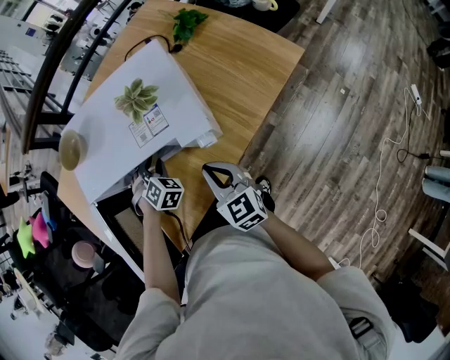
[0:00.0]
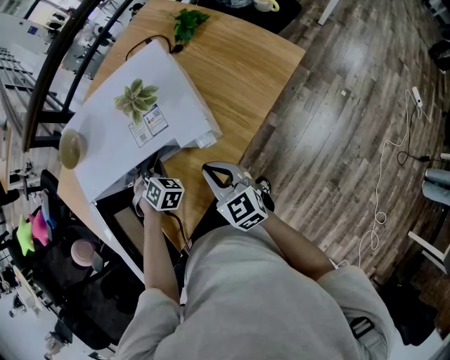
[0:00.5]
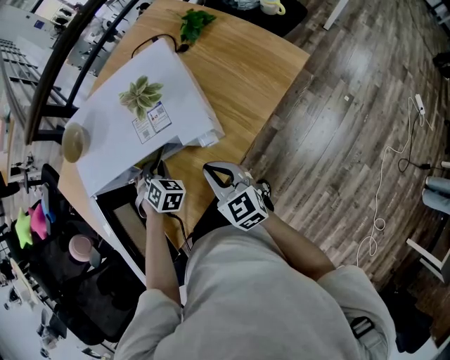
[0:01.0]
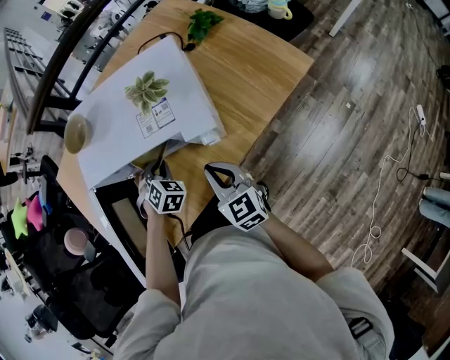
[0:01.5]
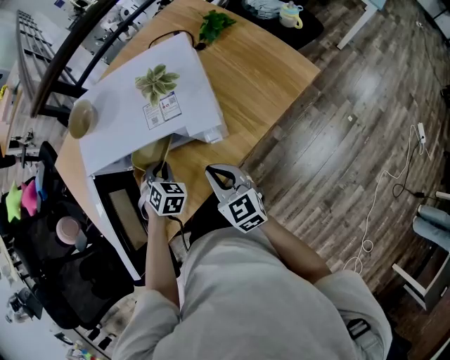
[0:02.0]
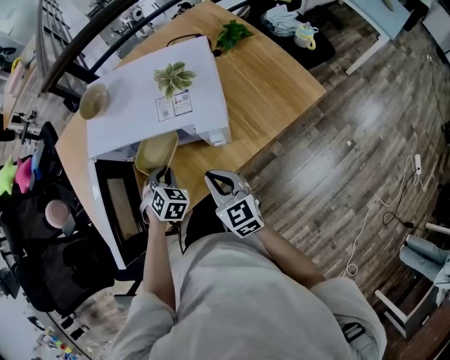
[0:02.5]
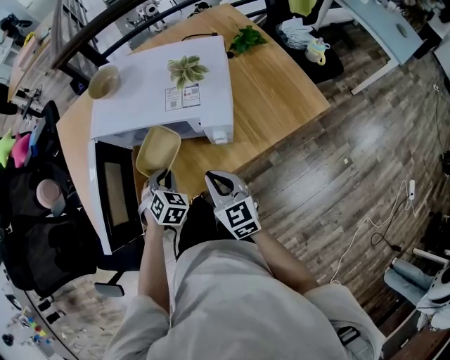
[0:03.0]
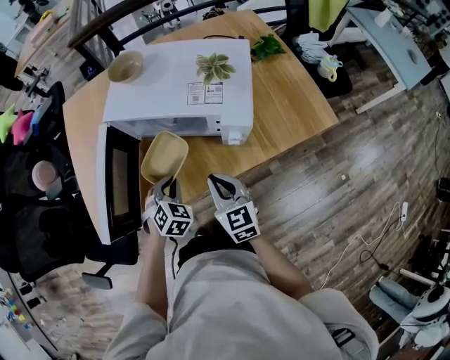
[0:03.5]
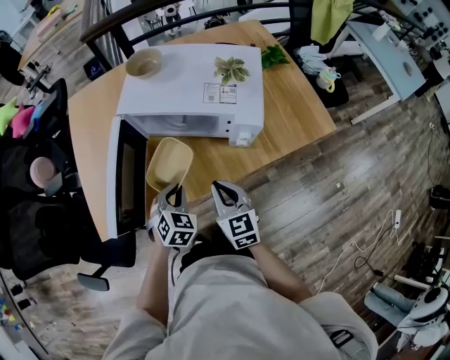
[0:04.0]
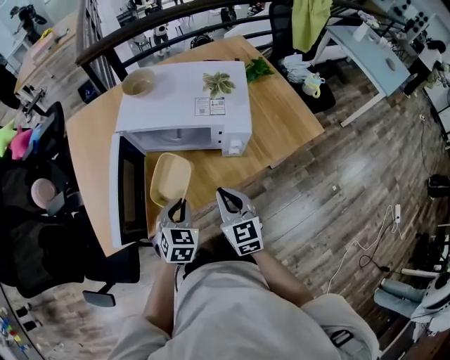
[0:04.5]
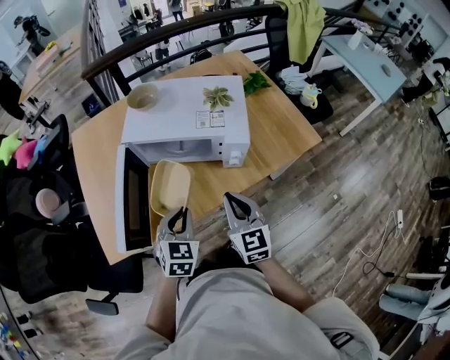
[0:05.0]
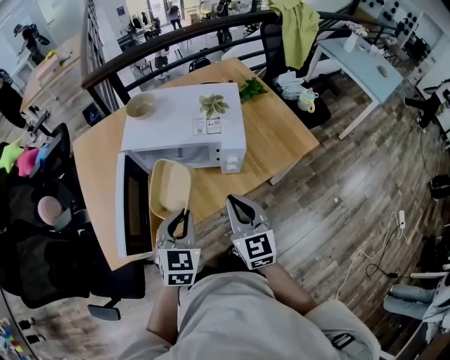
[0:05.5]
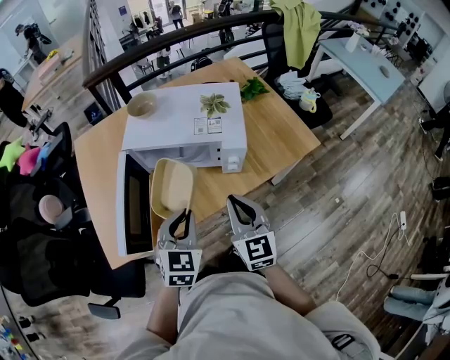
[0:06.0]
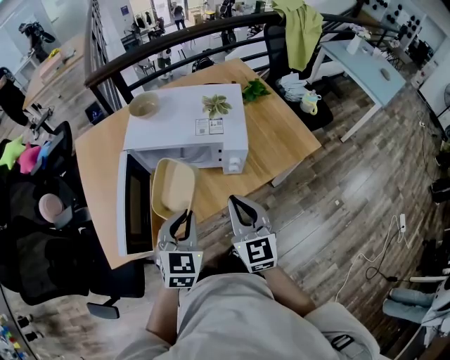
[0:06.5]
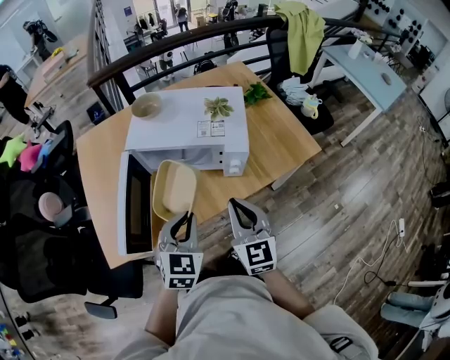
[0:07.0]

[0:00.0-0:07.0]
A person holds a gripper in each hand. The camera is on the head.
0:00.0 to 0:02.0: The left gripper travels backward by approximately 5 cm, and closes.
0:02.0 to 0:03.5: The left gripper is displaced backward by some 10 cm. Meanwhile the right gripper changes place by about 5 cm.
0:03.5 to 0:05.0: The left gripper is displaced upward and backward by roughly 15 cm, and changes its angle by approximately 20 degrees; the right gripper goes roughly 10 cm upward.
0:05.0 to 0:07.0: The grippers both shift upward by about 5 cm.

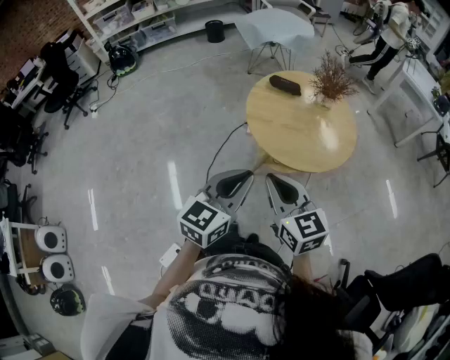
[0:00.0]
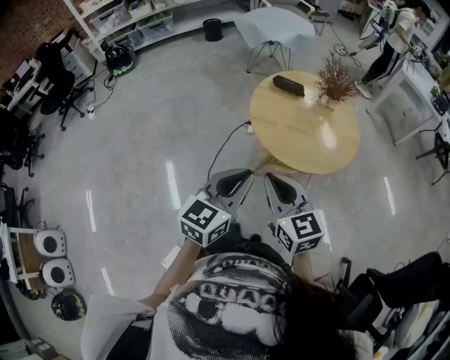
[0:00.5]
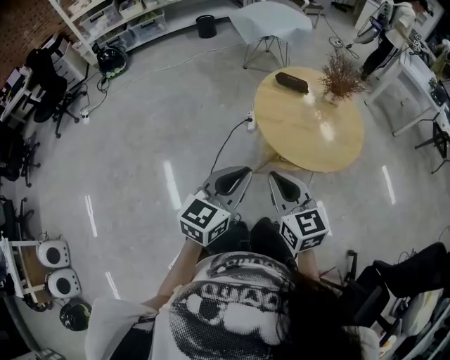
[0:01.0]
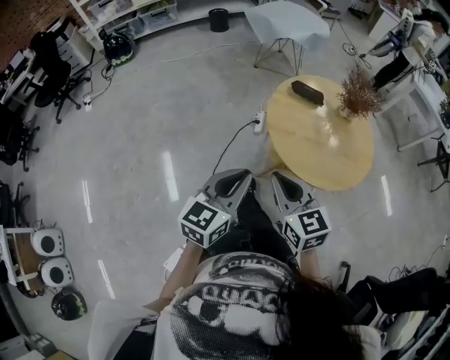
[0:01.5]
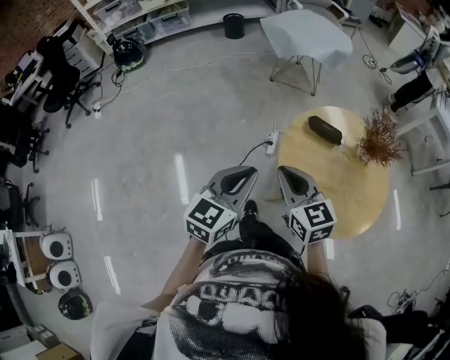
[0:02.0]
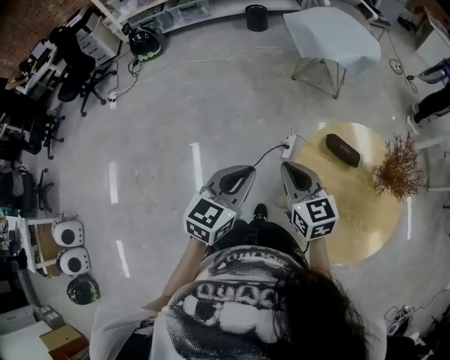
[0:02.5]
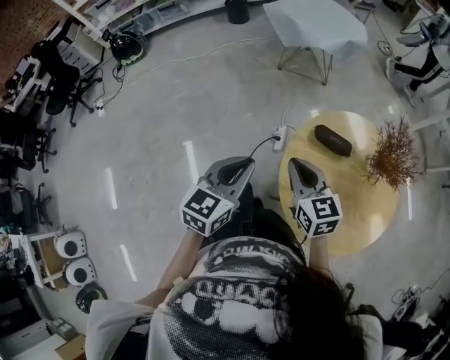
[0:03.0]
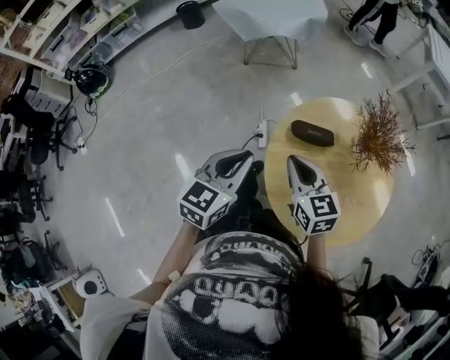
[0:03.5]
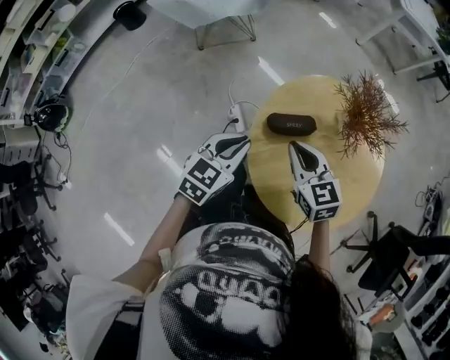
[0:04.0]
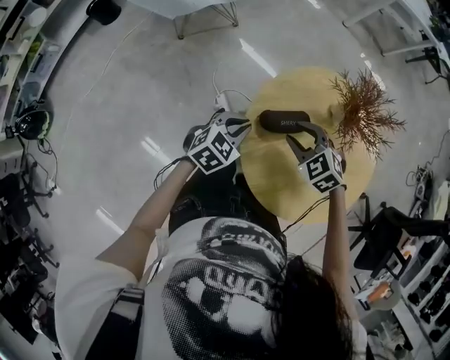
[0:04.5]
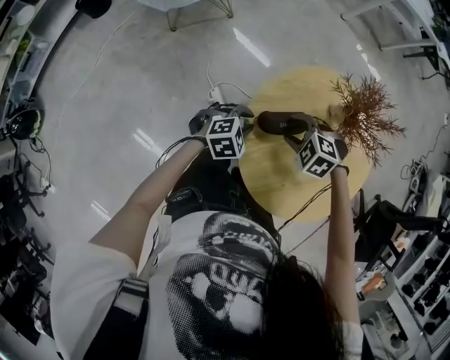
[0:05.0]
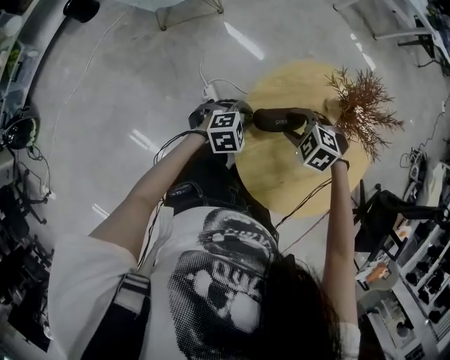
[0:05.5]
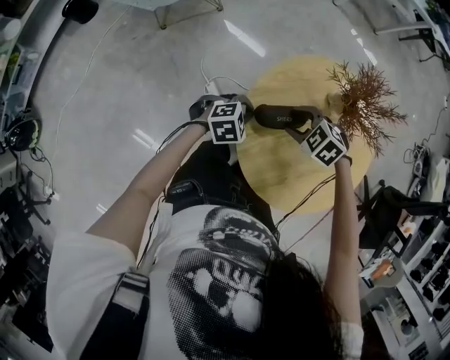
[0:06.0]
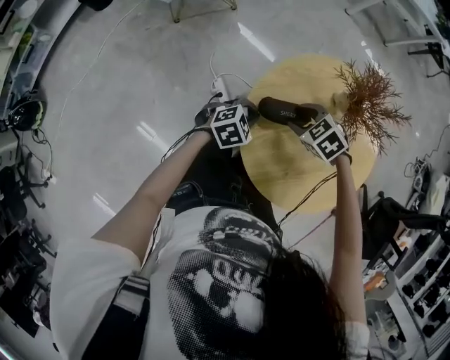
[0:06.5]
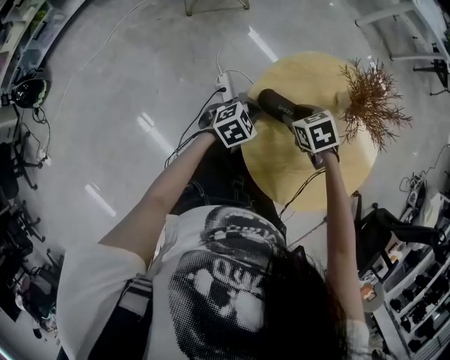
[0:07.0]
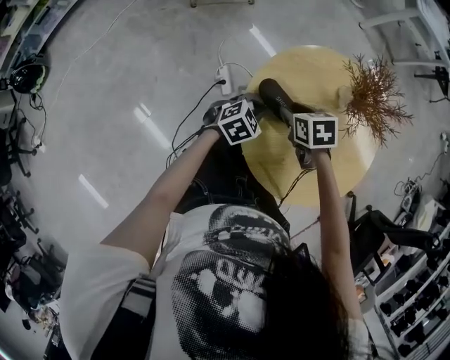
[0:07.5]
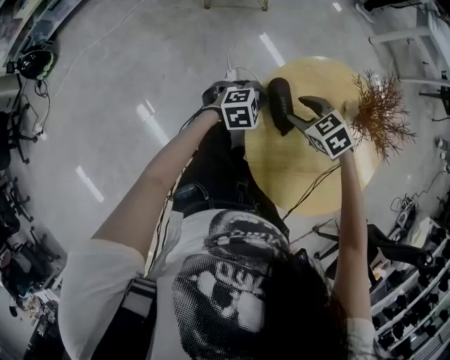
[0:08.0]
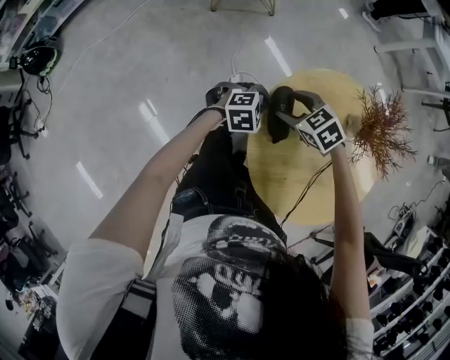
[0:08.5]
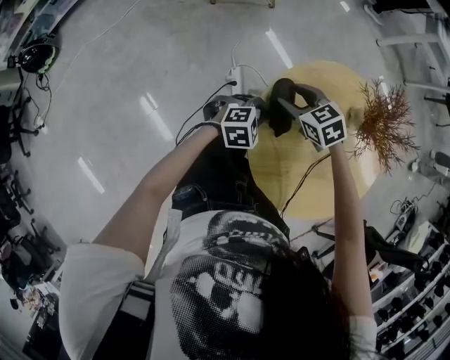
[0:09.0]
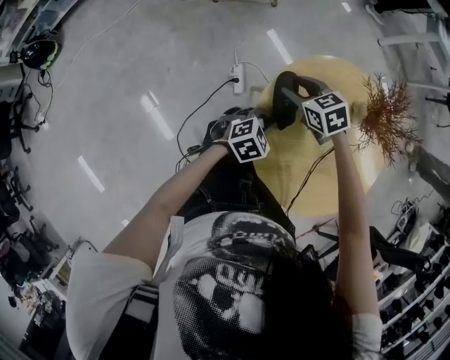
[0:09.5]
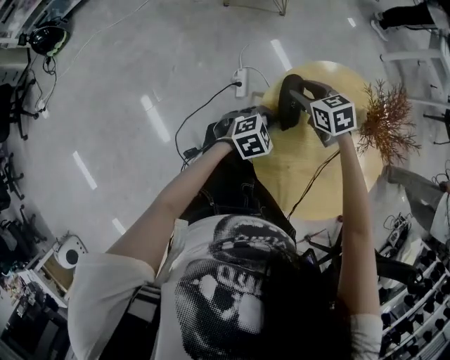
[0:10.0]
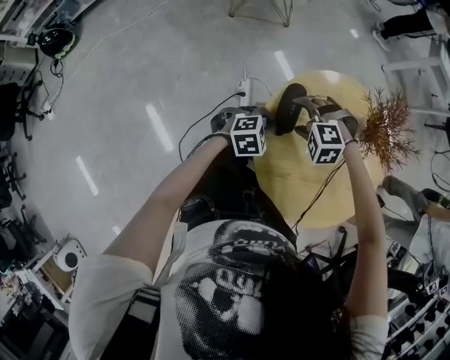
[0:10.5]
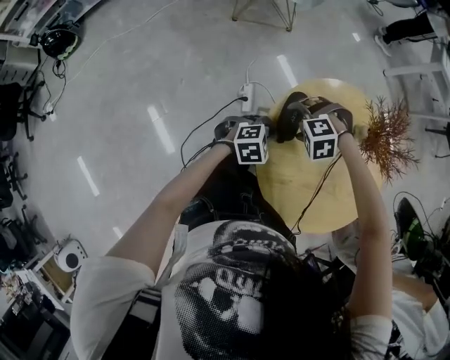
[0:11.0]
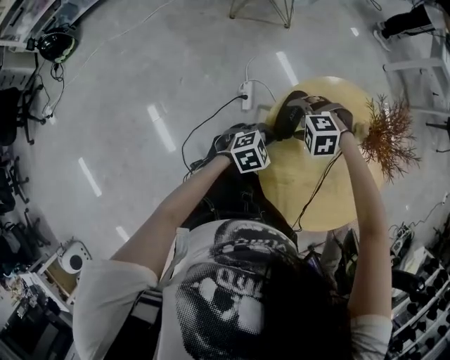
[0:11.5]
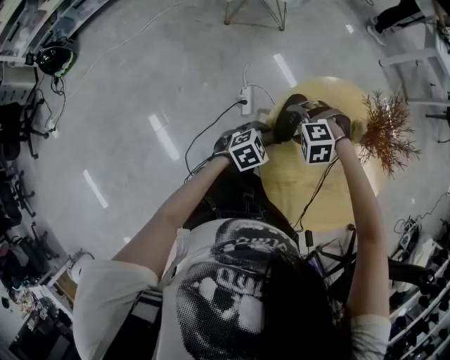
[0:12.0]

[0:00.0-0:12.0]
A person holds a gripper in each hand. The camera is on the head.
0:00.0 to 0:02.0: The grippers both shift forward and to the left by approximately 30 cm.
0:02.0 to 0:04.0: The right gripper changes place by roughly 25 cm, and turns by some 30 degrees. Meanwhile the left gripper changes place by some 30 cm, and swivels approximately 40 degrees.
0:04.0 to 0:06.0: The grippers both shift downward by roughly 15 cm. The left gripper changes its angle by approximately 50 degrees; the right gripper tilts its fingers roughly 40 degrees downward, and opens its fingers.
0:06.0 to 0:08.0: The right gripper moves approximately 5 cm; the left gripper turns by roughly 20 degrees.
0:08.0 to 0:10.0: The left gripper changes place by approximately 10 cm, and turns by about 20 degrees. Meanwhile the right gripper ends up roughly 5 cm from where it was.
0:10.0 to 0:12.0: The left gripper opens. The right gripper moves about 10 cm, twists about 70 degrees counterclockwise, seen from behind, and opens its fingers.

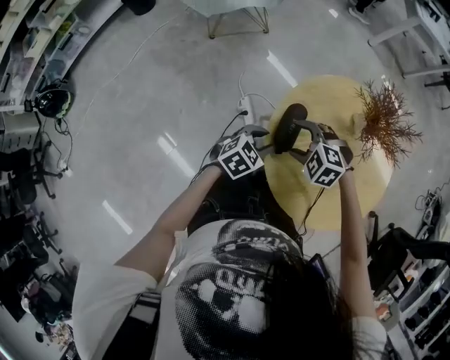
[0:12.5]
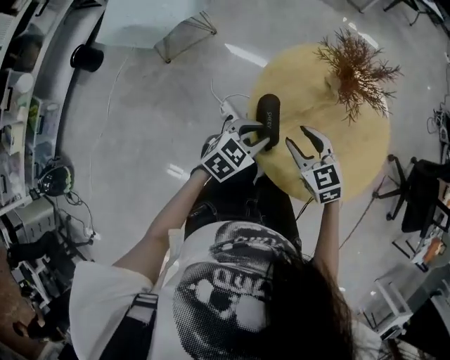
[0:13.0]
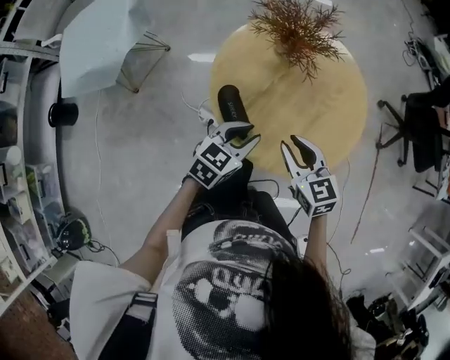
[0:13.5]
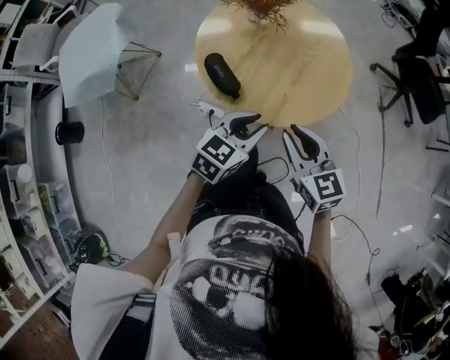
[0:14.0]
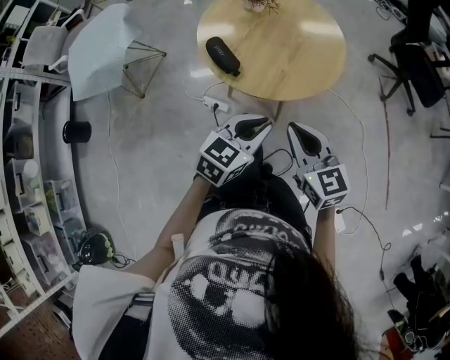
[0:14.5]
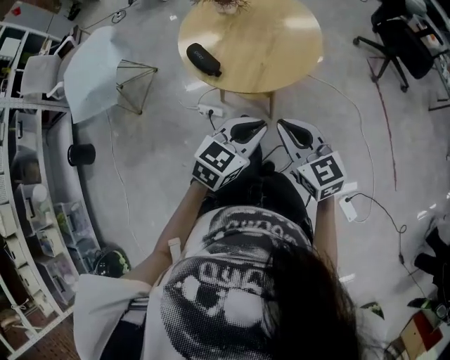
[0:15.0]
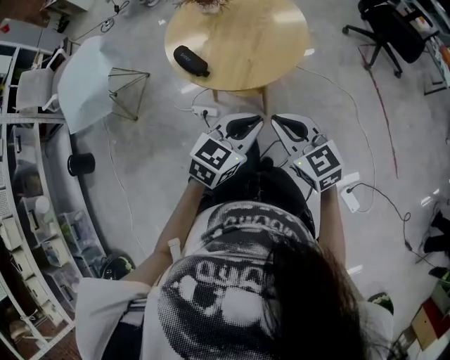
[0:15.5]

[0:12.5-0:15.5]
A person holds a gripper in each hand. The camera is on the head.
0:12.5 to 0:14.0: The right gripper changes place by some 25 cm, tilts its fingers approximately 40 degrees upward, and closes, while the left gripper moves approximately 20 cm, and swivels approximately 40 degrees.
0:14.0 to 0:15.5: The left gripper moves backward and to the right, some 15 cm; the right gripper moves backward, approximately 10 cm.

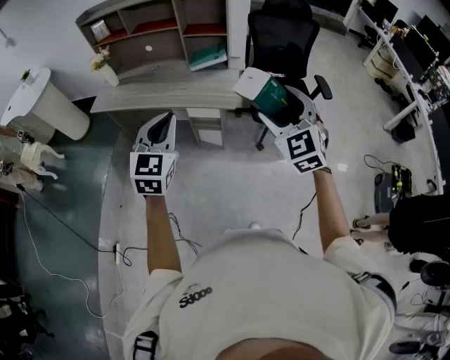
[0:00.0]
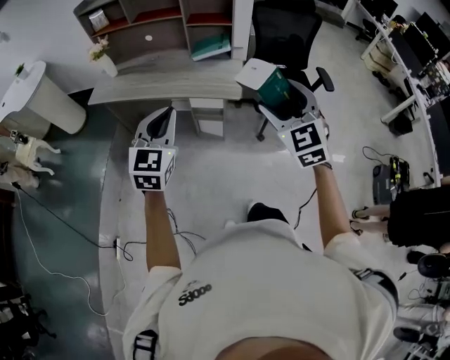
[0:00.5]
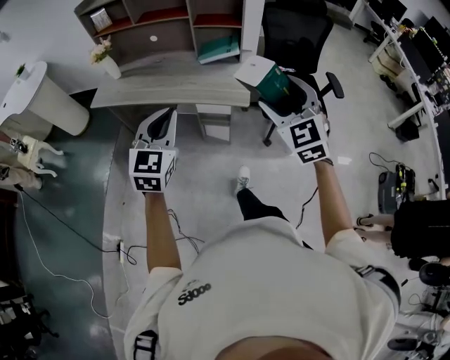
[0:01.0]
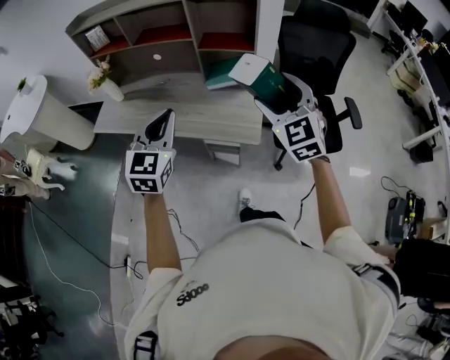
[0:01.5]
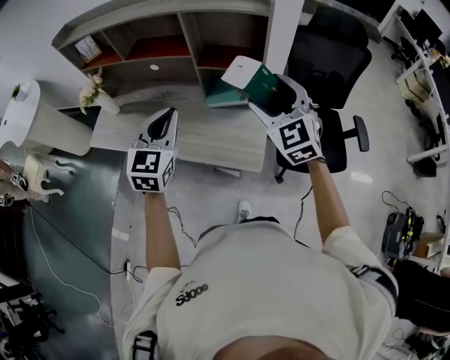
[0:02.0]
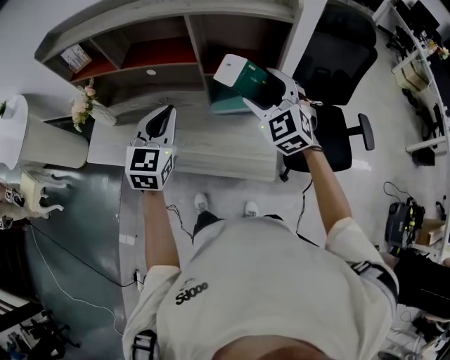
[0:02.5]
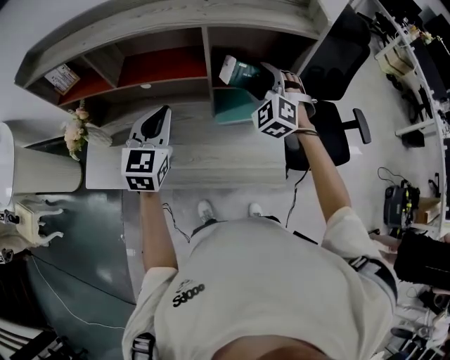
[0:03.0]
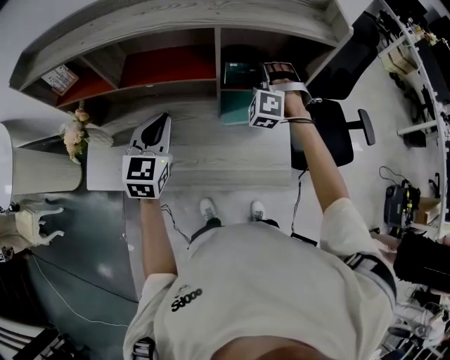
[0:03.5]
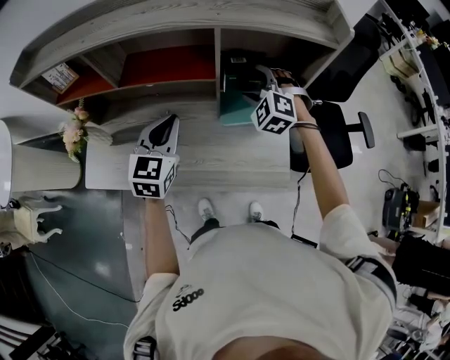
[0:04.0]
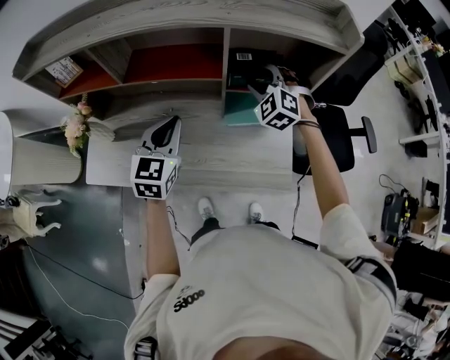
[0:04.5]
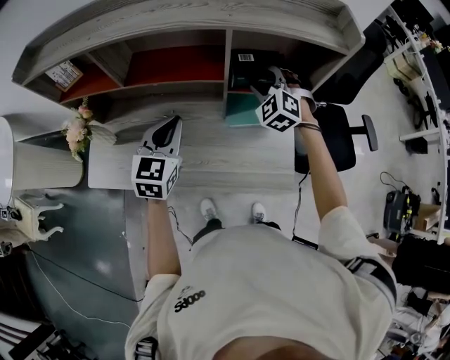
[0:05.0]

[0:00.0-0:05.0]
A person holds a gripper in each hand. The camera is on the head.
0:00.0 to 0:02.5: The pair of grippers is taken forward, approximately 60 cm.
0:02.5 to 0:05.0: The left gripper heads forward, to the left and downward, covering about 15 cm; the right gripper travels forward, downward and to the left by some 20 cm, and swivels roughly 20 degrees.
